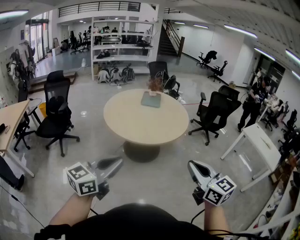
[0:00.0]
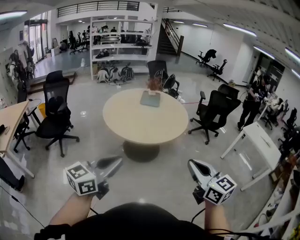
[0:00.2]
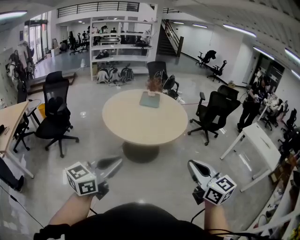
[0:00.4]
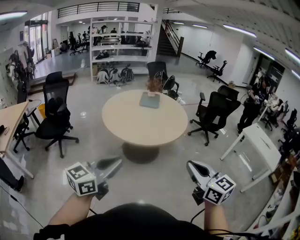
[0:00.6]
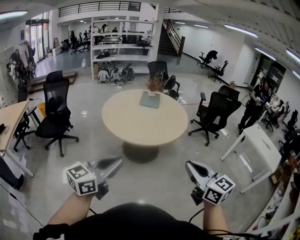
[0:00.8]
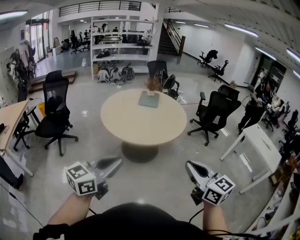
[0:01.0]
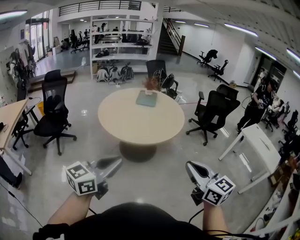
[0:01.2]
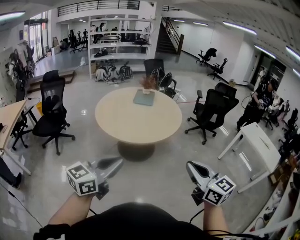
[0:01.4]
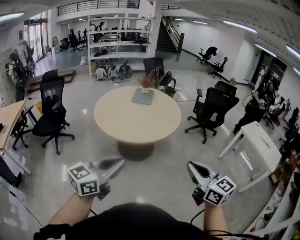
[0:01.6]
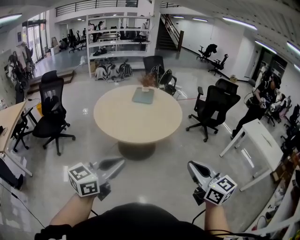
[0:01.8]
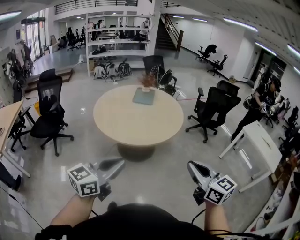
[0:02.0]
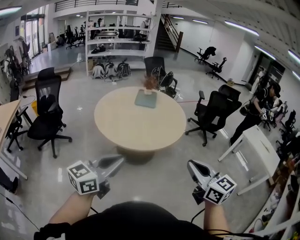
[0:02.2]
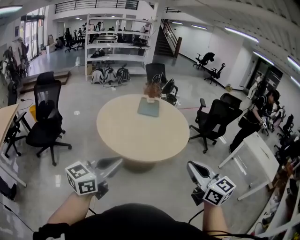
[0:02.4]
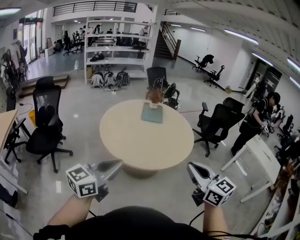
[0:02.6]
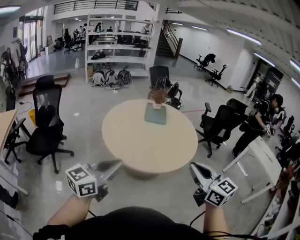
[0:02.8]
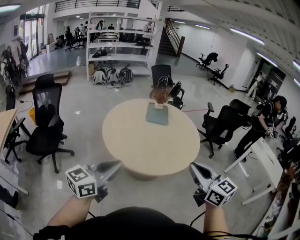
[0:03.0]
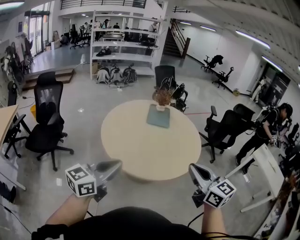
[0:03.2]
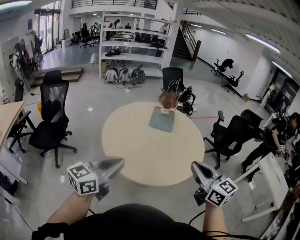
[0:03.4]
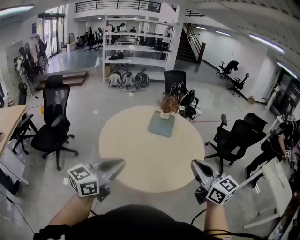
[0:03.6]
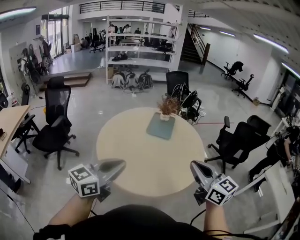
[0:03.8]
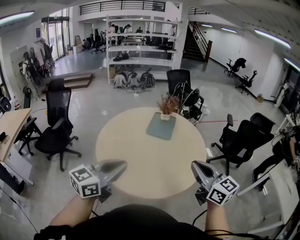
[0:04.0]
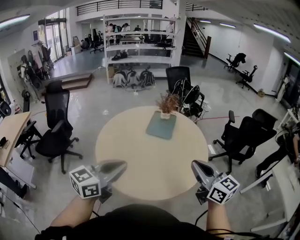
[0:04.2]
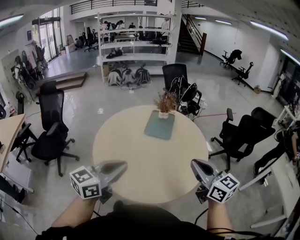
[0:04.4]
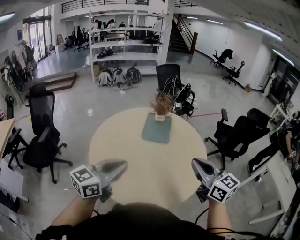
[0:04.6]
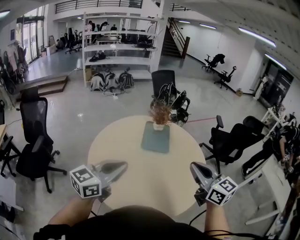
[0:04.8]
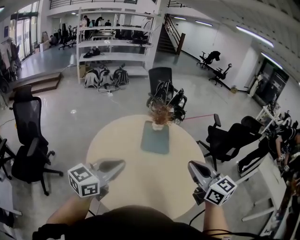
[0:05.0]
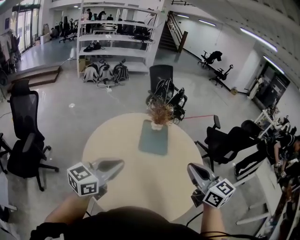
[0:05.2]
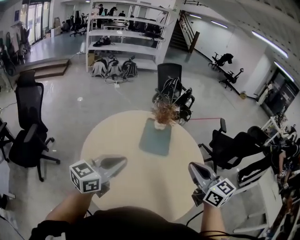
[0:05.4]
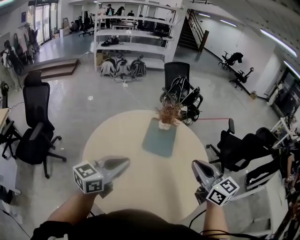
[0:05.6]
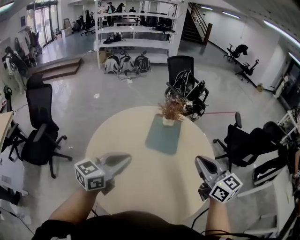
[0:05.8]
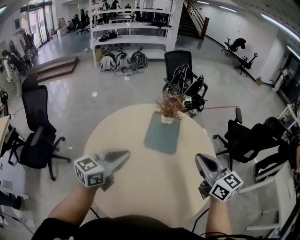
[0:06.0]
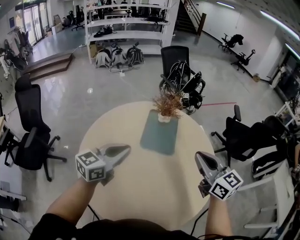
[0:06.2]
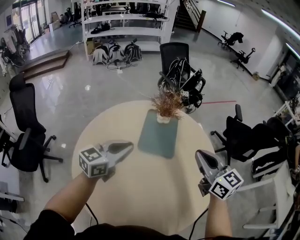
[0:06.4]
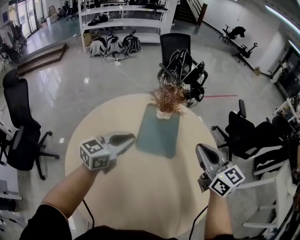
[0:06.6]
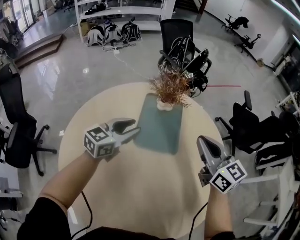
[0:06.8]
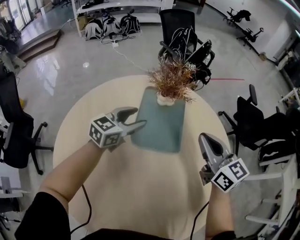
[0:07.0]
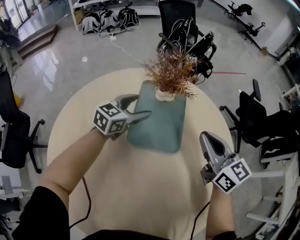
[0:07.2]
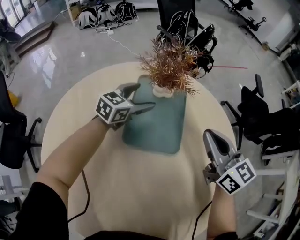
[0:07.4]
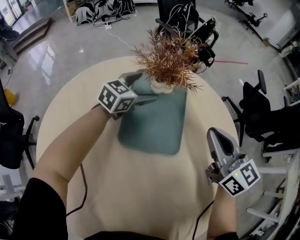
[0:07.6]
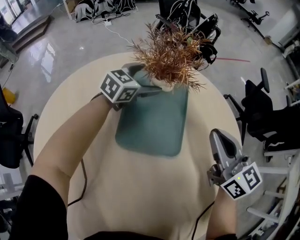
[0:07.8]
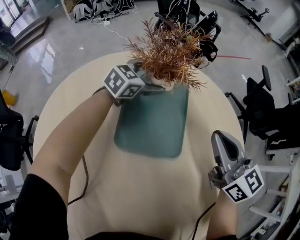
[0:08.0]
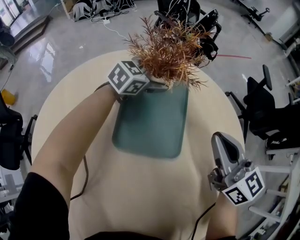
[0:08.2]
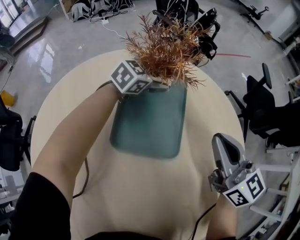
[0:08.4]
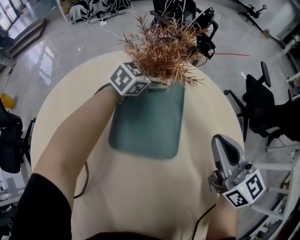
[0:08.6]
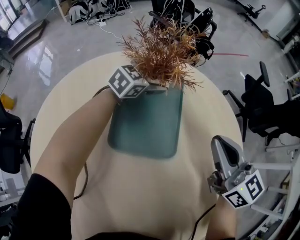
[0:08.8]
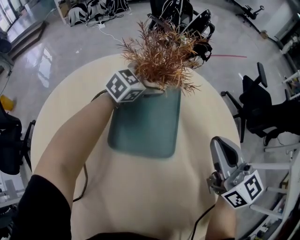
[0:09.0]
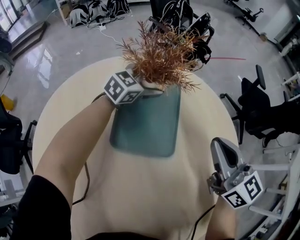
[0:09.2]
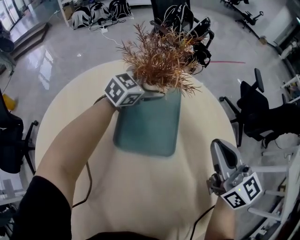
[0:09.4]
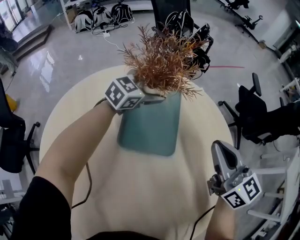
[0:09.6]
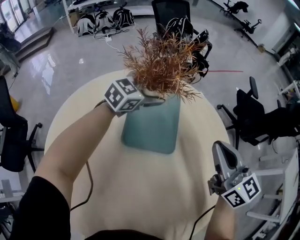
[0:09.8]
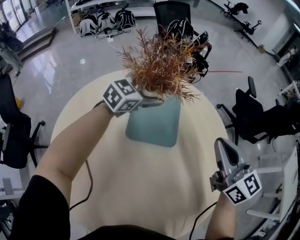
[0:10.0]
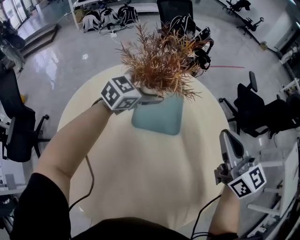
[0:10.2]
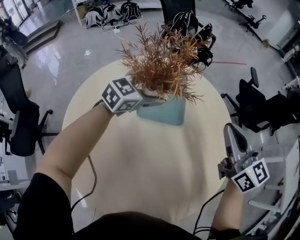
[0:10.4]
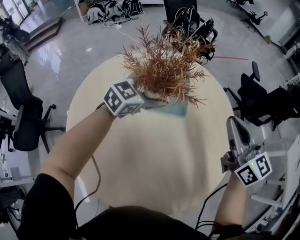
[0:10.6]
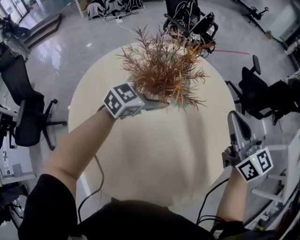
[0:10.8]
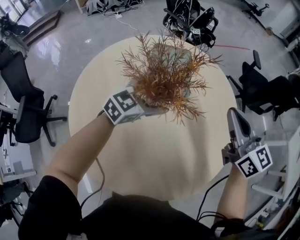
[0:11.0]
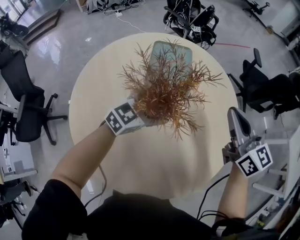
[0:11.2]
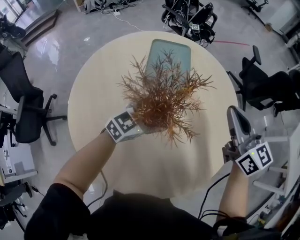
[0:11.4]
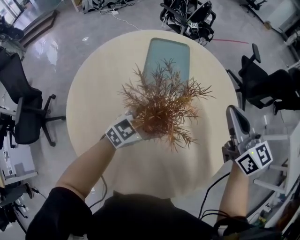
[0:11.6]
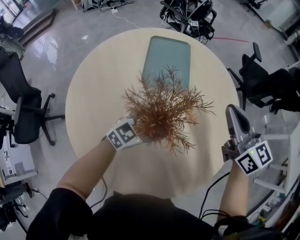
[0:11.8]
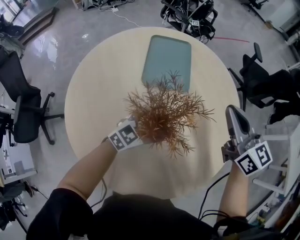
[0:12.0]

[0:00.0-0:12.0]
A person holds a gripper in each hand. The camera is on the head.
0:00.0 to 0:01.6: Both grippers travel together to the right, about 10 cm.
0:01.6 to 0:03.0: Both grippers travel together to the left and forward, some 35 cm.
0:03.0 to 0:04.4: Both grippers move forward and to the right, some 30 cm.
0:04.4 to 0:06.0: The grippers both shift forward by roughly 25 cm.
0:06.0 to 0:07.6: The left gripper goes some 50 cm forward and downward, turns by some 20 degrees, and opens up. Meanwhile the right gripper goes approximately 35 cm forward and downward.
0:07.6 to 0:09.0: The left gripper is displaced to the right and forward by roughly 5 cm.
0:09.0 to 0:10.4: The right gripper heads upward and backward, covering some 20 cm, while the left gripper heads backward and upward, covering roughly 25 cm.
0:10.4 to 0:12.0: The left gripper heads backward and downward, covering approximately 25 cm; the right gripper is displaced backward by some 5 cm.

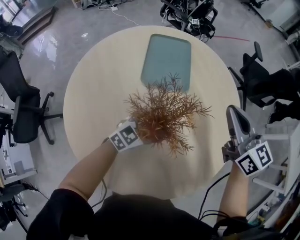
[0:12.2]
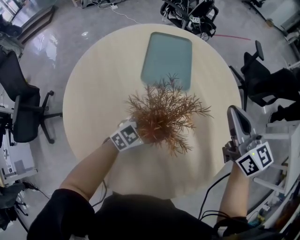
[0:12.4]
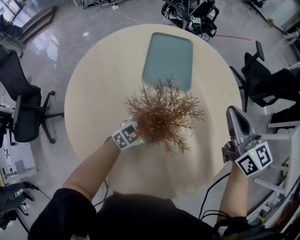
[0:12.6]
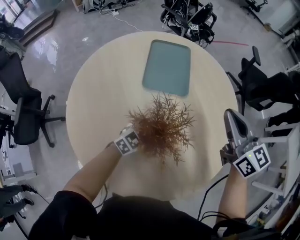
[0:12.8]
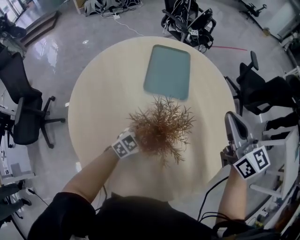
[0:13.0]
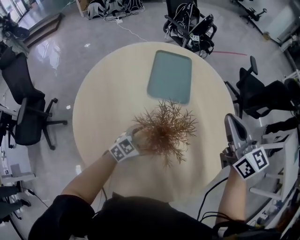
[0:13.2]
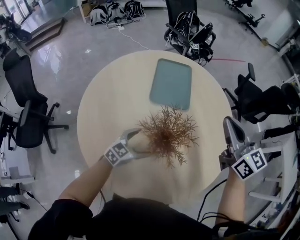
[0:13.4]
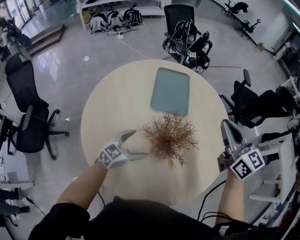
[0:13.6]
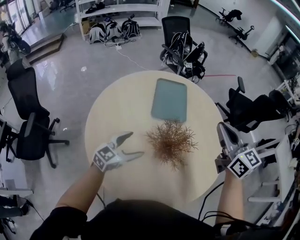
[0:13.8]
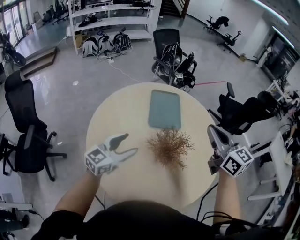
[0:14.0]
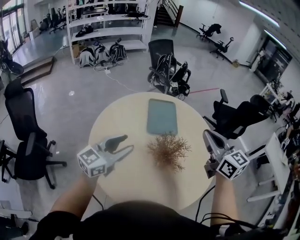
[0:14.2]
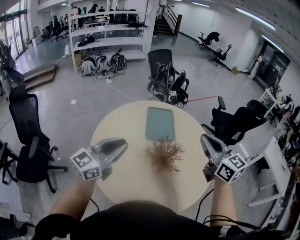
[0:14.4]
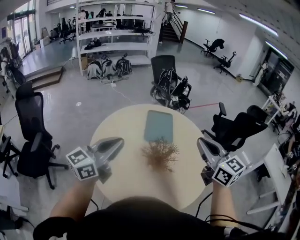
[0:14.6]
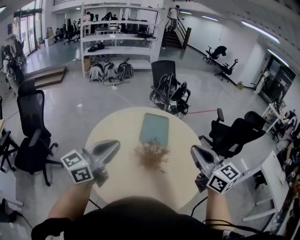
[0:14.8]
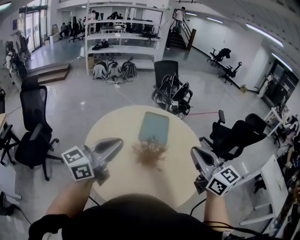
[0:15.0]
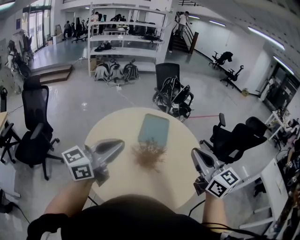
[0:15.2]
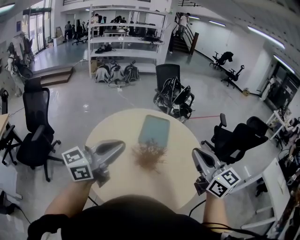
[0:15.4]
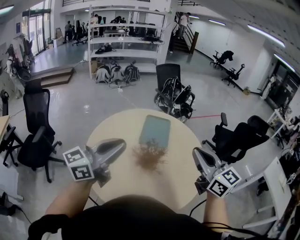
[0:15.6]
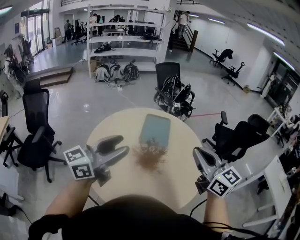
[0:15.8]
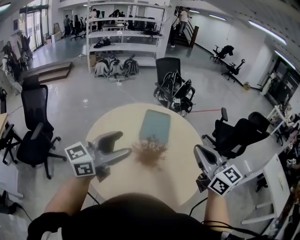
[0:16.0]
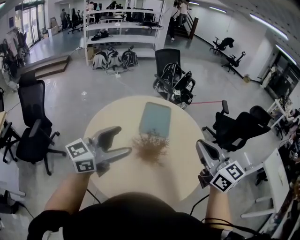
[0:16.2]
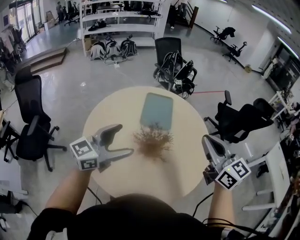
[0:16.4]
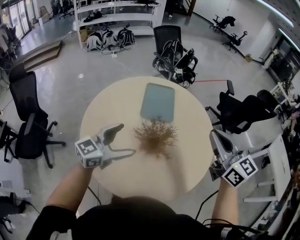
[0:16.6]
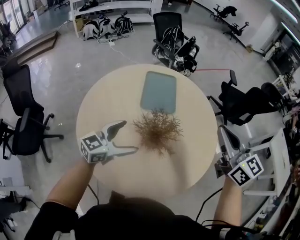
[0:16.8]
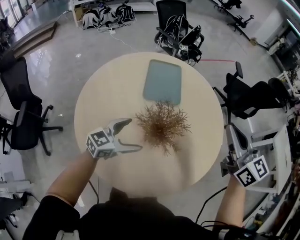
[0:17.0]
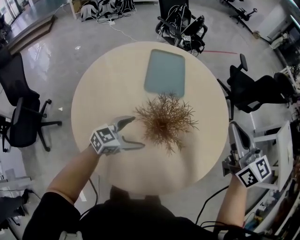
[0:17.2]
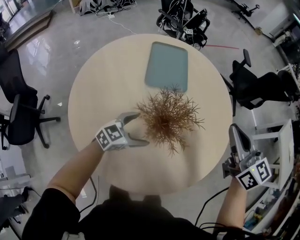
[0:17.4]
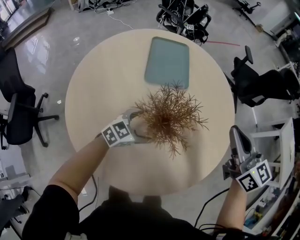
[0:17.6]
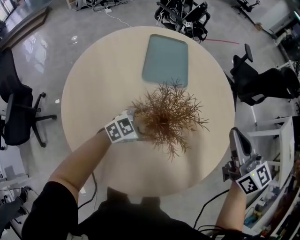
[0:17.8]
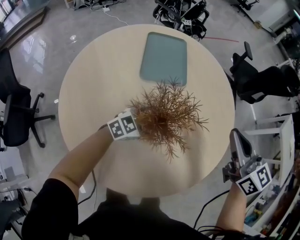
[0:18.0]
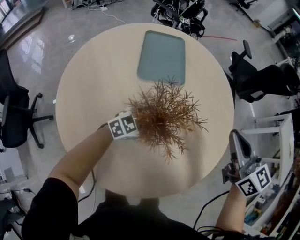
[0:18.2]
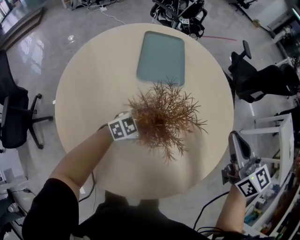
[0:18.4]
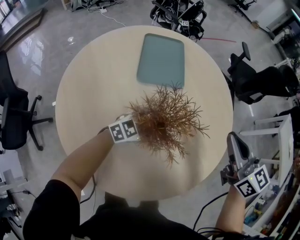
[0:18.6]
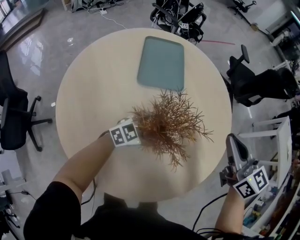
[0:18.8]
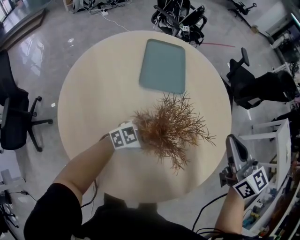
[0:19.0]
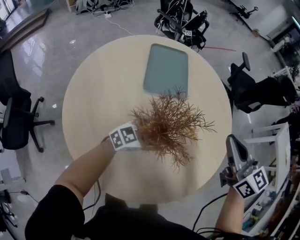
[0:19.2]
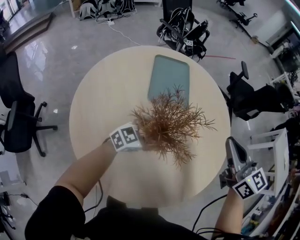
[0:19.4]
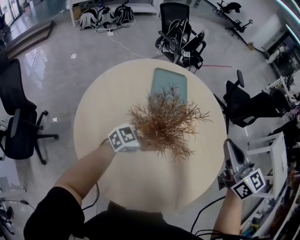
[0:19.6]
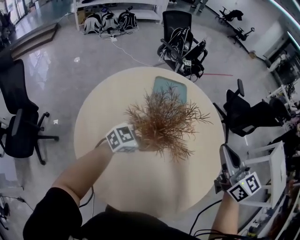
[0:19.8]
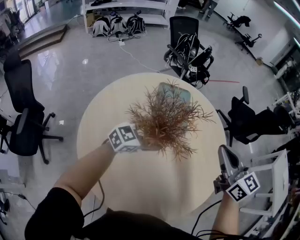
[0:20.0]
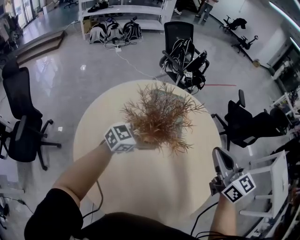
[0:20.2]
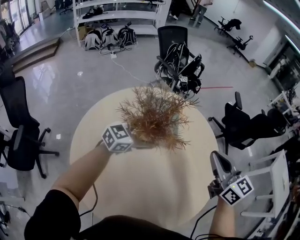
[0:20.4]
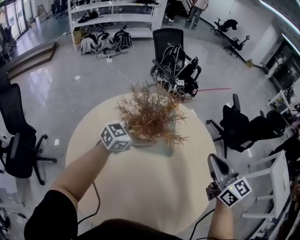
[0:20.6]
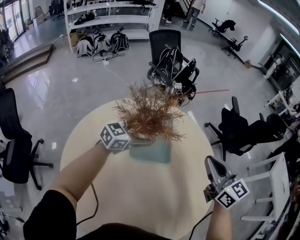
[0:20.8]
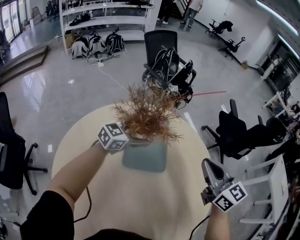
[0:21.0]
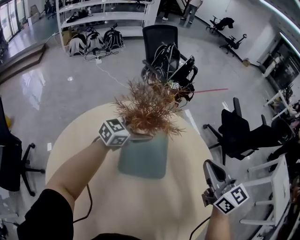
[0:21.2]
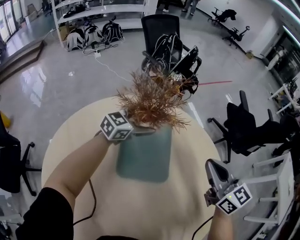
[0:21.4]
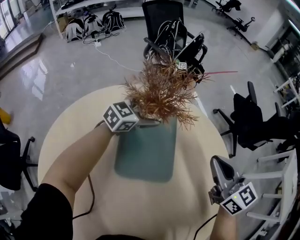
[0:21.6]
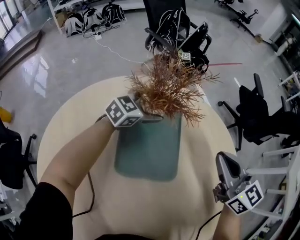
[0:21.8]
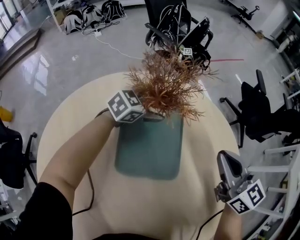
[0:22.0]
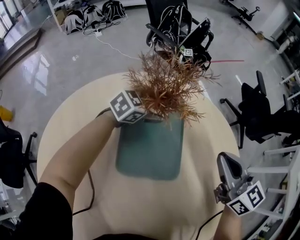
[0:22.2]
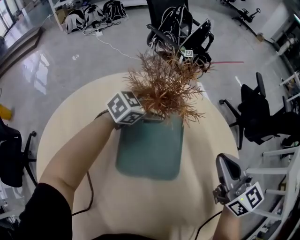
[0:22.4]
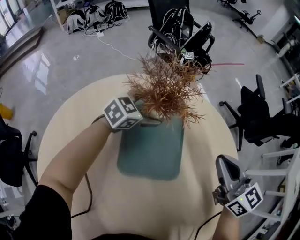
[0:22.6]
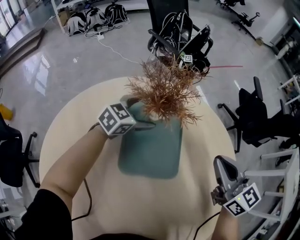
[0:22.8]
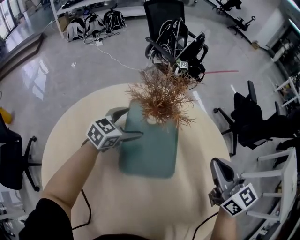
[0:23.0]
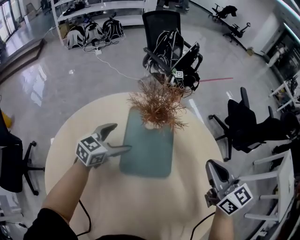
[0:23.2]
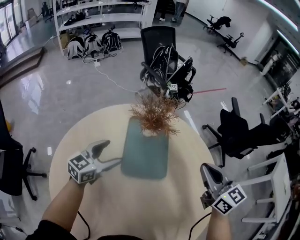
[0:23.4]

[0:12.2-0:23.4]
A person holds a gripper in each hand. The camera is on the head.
0:12.2 to 0:13.8: The left gripper goes roughly 20 cm to the left, upward and backward. Meanwhile the right gripper travels upward, backward and to the left by some 15 cm.
0:13.8 to 0:15.4: The left gripper is displaced upward and backward by approximately 35 cm, turns by about 30 degrees, and closes. Meanwhile the right gripper goes some 20 cm backward and upward.
0:15.4 to 0:17.0: The right gripper heads downward and forward, covering approximately 15 cm. Meanwhile the left gripper goes roughly 35 cm downward, rotates approximately 30 degrees, and opens its fingers.
0:17.0 to 0:18.6: The left gripper moves downward, to the right and forward, some 20 cm, and swivels approximately 20 degrees. Meanwhile the right gripper shifts roughly 15 cm downward.
0:18.6 to 0:20.2: The left gripper heads upward, to the left and forward, covering roughly 25 cm. The right gripper moves upward, to the left and forward, roughly 15 cm.
0:20.2 to 0:21.8: The grippers both shift forward and downward by approximately 35 cm.
0:21.8 to 0:23.4: The right gripper heads upward and backward, covering about 10 cm. The left gripper goes about 25 cm backward, to the left and upward, and turns by approximately 20 degrees.
